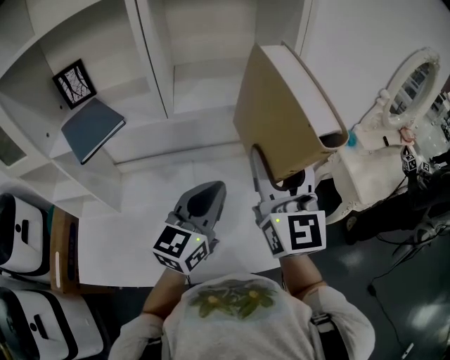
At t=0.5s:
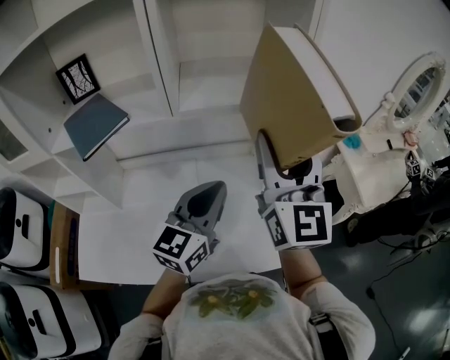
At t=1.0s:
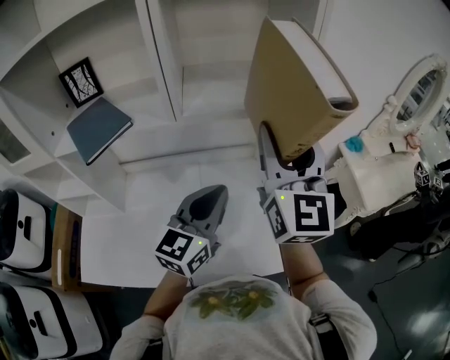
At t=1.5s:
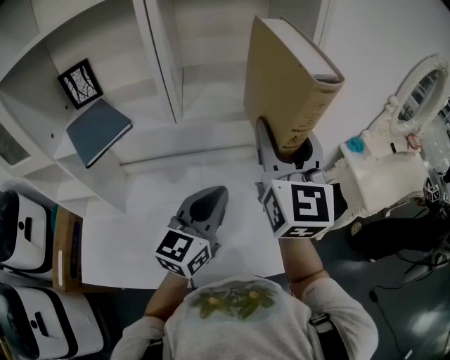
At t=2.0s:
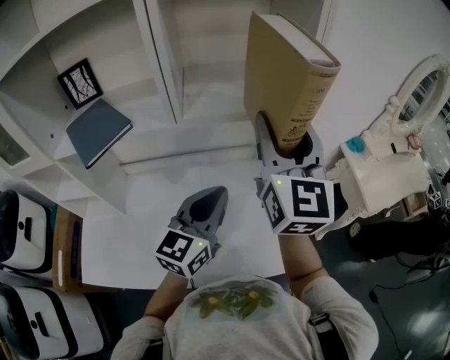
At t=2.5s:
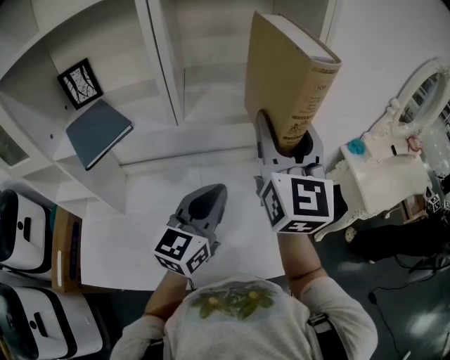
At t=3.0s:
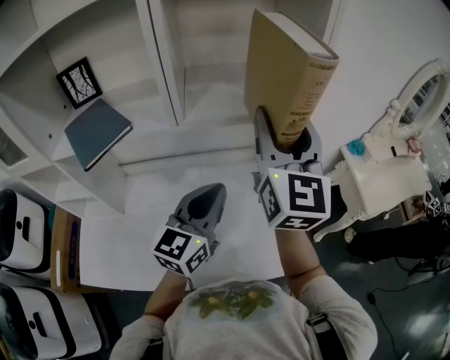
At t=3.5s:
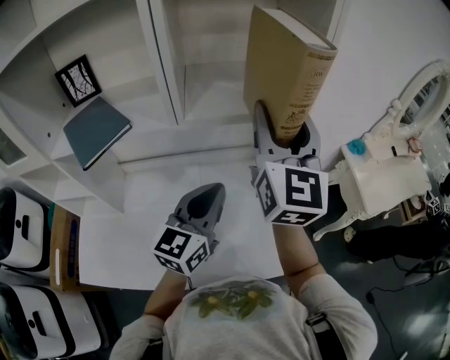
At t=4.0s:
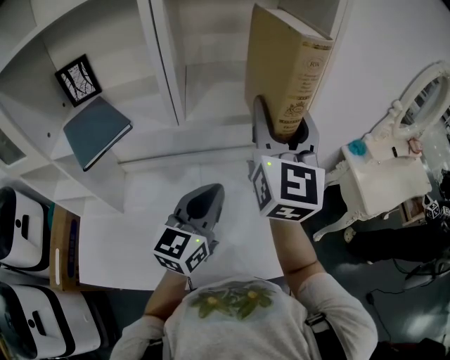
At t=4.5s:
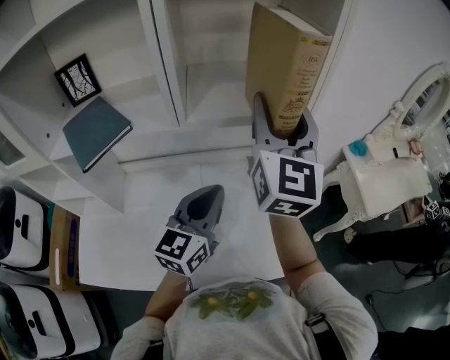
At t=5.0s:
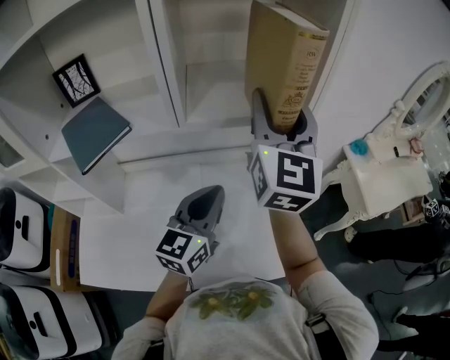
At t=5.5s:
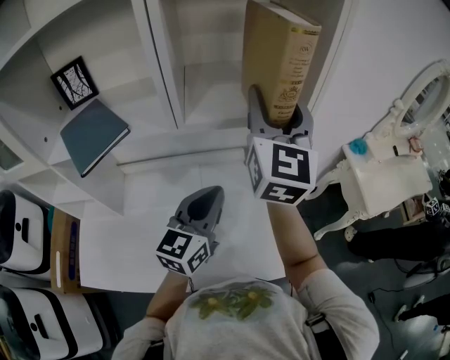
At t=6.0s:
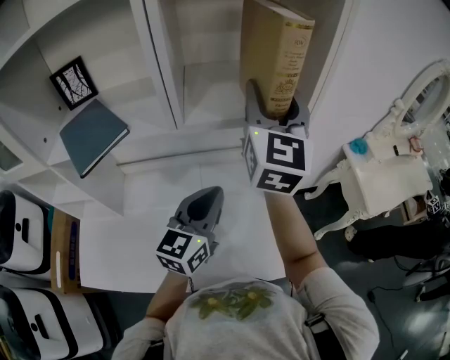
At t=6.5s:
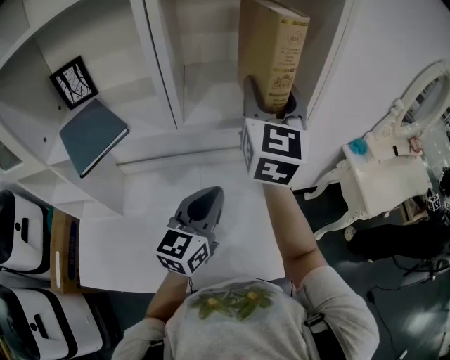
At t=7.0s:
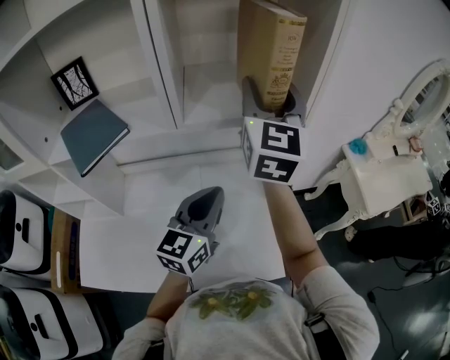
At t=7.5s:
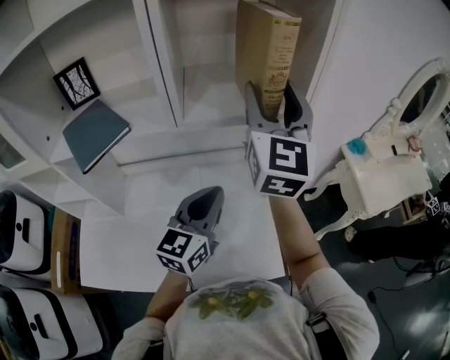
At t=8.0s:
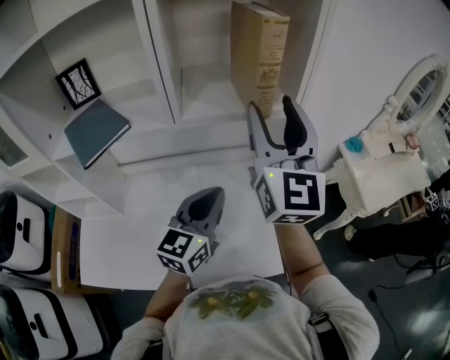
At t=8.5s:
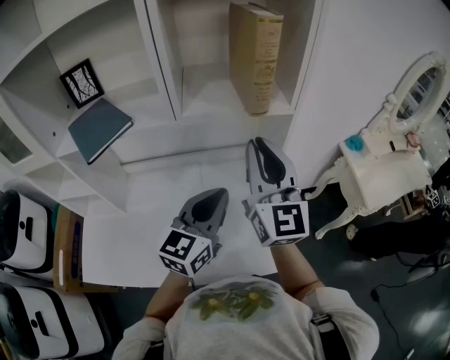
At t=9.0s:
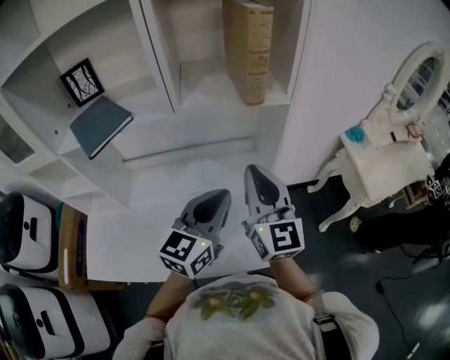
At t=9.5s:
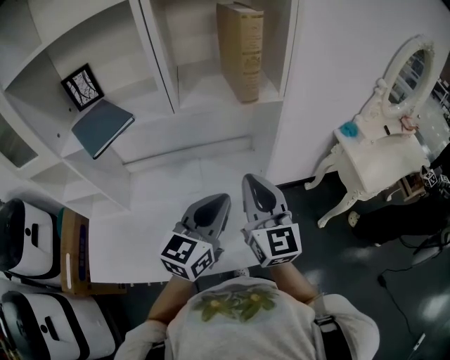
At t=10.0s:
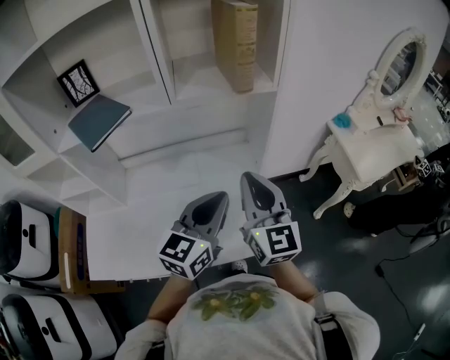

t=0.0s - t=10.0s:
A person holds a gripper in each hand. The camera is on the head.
t=0.0s - t=2.0s: The right gripper moves forward, approximately 5 cm.
t=2.0s - t=4.0s: The grippers stay close to where they were, moving slightly.
t=4.0s - t=6.0s: The right gripper moves forward, some 5 cm.
t=6.0s - t=8.0s: The right gripper travels backward by about 10 cm.
t=8.0s - t=10.0s: The right gripper shifts approximately 20 cm downward and backward, and closes its fingers. The left gripper is displaced backward by about 10 cm.

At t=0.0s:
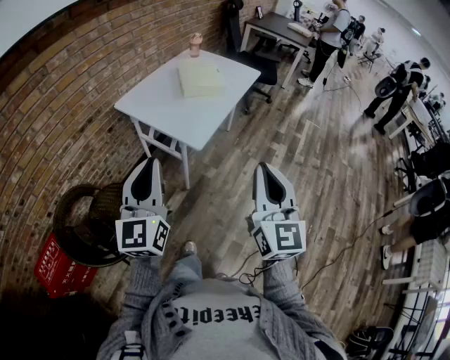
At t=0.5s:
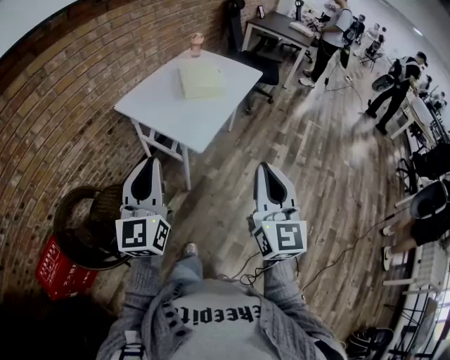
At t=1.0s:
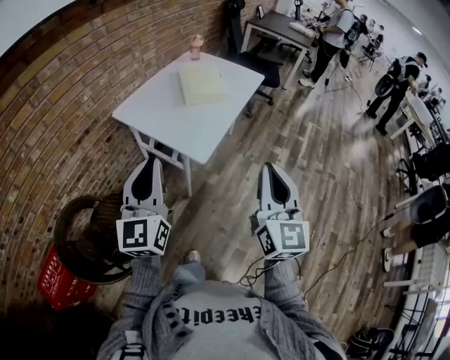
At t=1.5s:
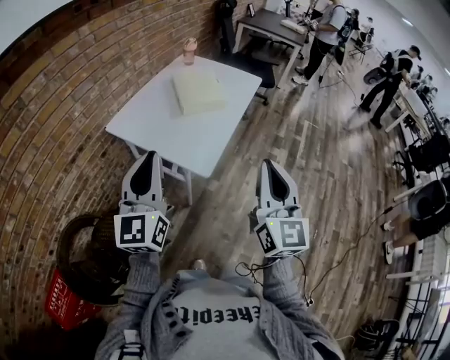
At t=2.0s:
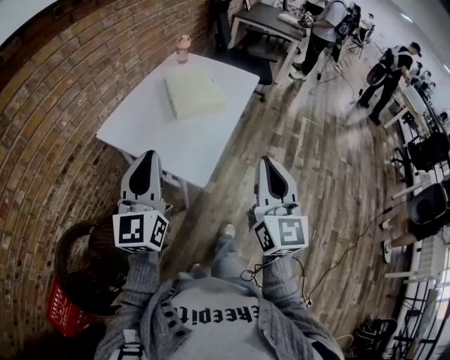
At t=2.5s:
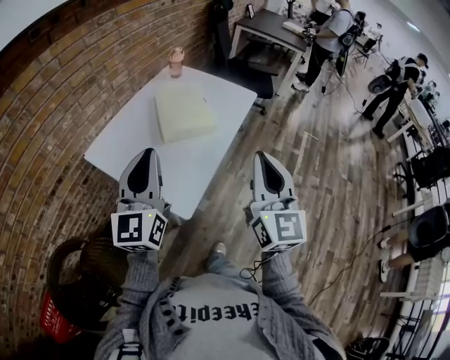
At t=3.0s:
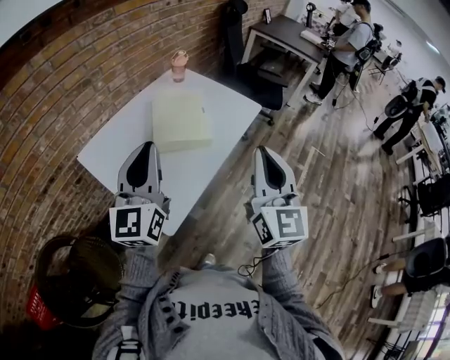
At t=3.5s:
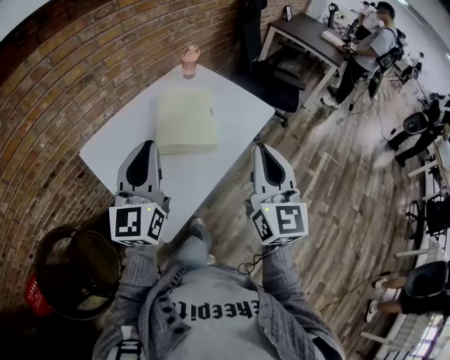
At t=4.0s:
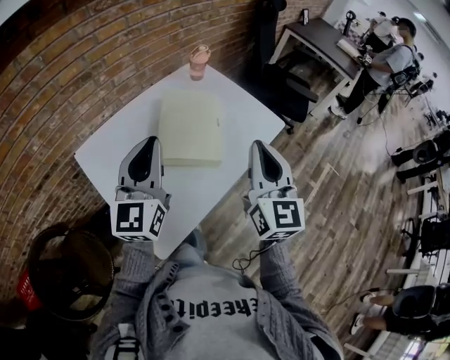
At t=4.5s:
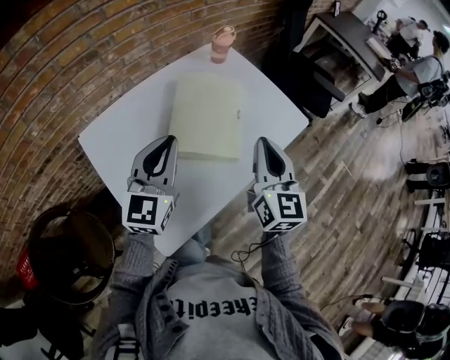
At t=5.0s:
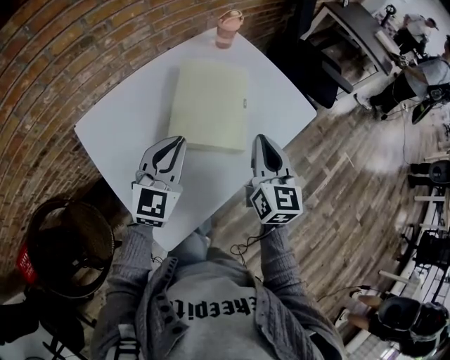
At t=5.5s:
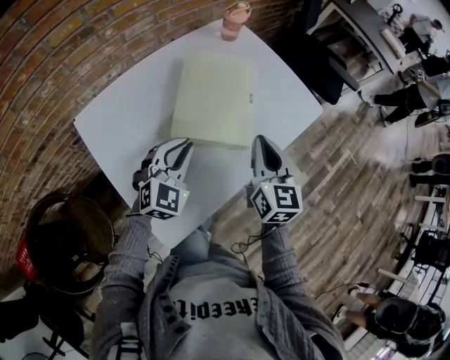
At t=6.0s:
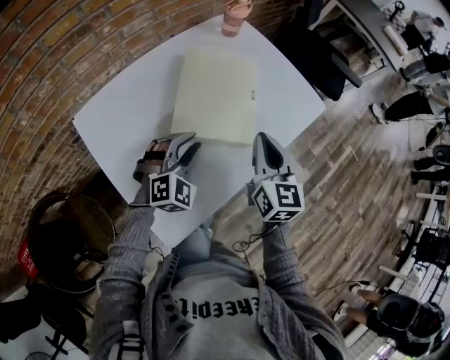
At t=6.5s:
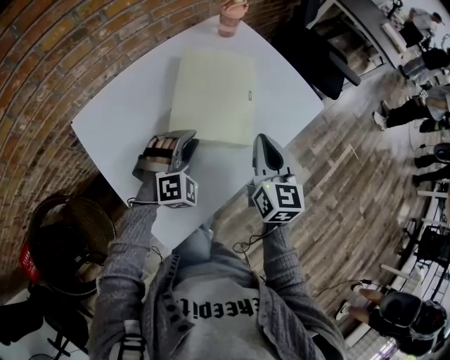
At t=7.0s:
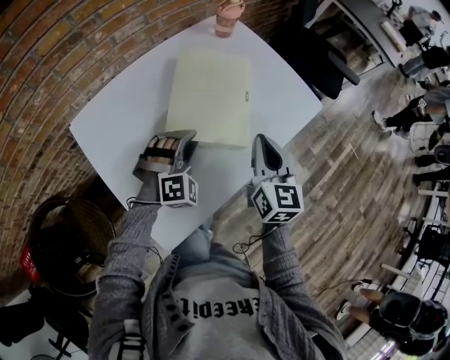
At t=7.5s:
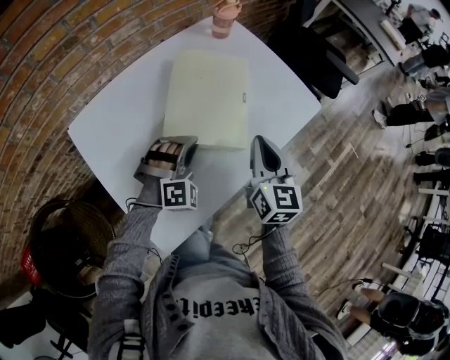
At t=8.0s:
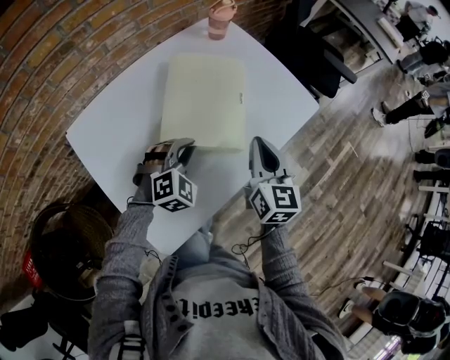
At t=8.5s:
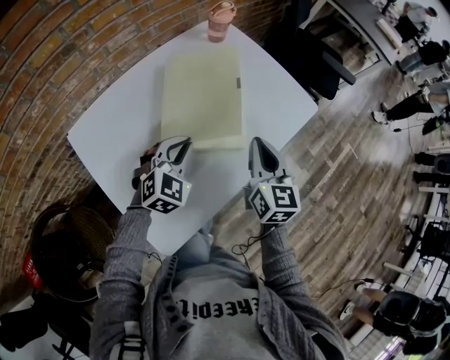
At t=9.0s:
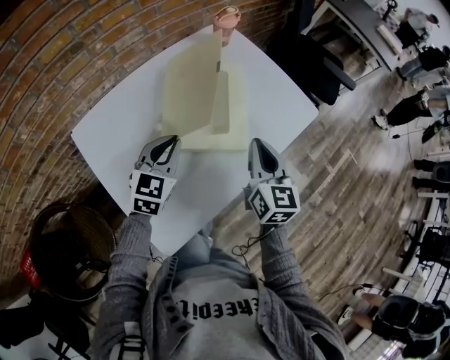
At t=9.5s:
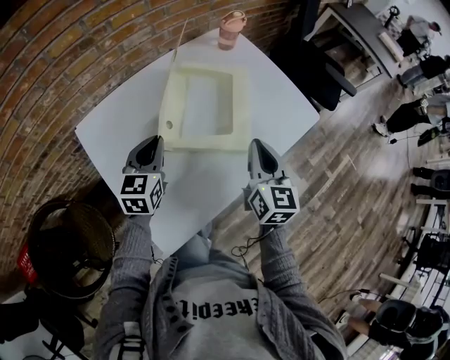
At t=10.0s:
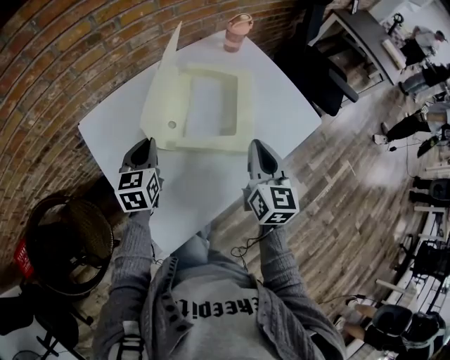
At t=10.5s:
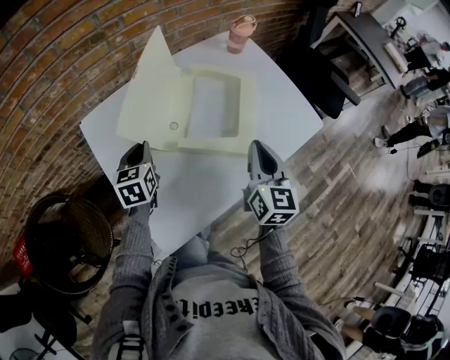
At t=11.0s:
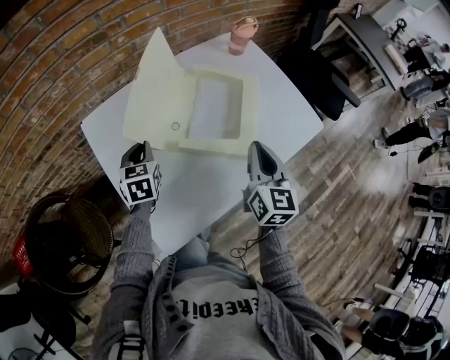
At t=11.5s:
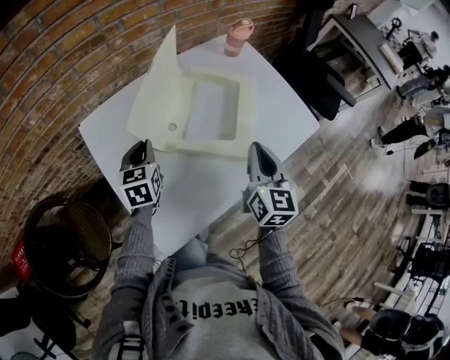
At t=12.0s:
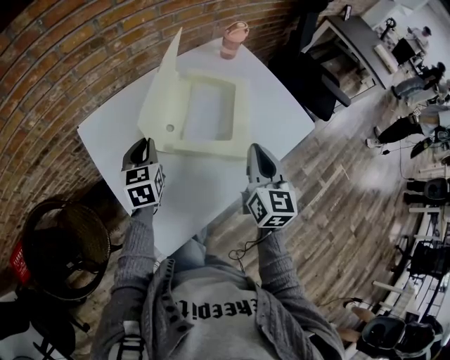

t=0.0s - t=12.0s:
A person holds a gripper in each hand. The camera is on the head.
t=0.0s - t=2.0s: Both grippers travel together forward, some 20 cm.
t=2.0s - t=4.0s: The right gripper moves forward, approximately 40 cm, and turns by about 20 degrees, while the left gripper moves forward and to the right, about 35 cm.
t=4.0s - t=6.0s: The right gripper shifts roughly 20 cm downward and forward; the left gripper moves downward, approximately 30 cm, tips its fingers downward by approximately 40 degrees, and opens.
t=8.0s - t=10.0s: The left gripper heads to the left, covering some 15 cm, and rotates around the line of its fingers by about 60 degrees, counterclockwise from behind.
t=10.0s - t=12.0s: The grippers move only a little.

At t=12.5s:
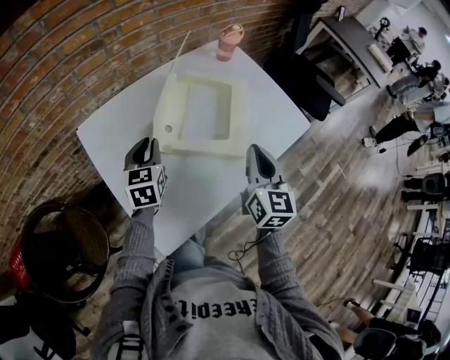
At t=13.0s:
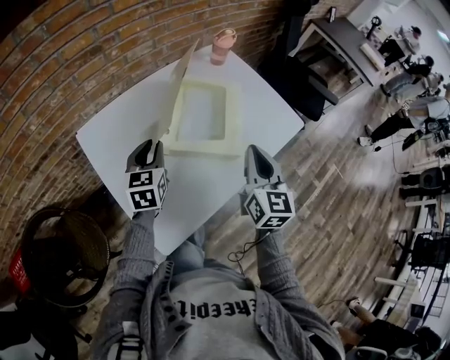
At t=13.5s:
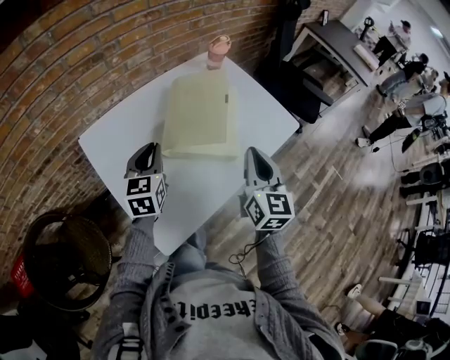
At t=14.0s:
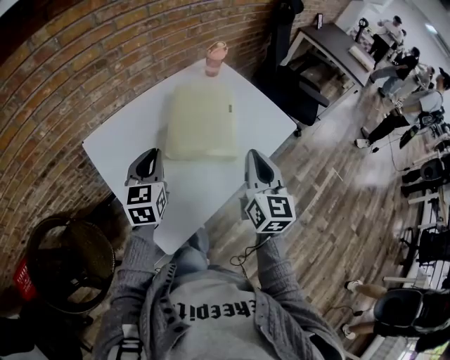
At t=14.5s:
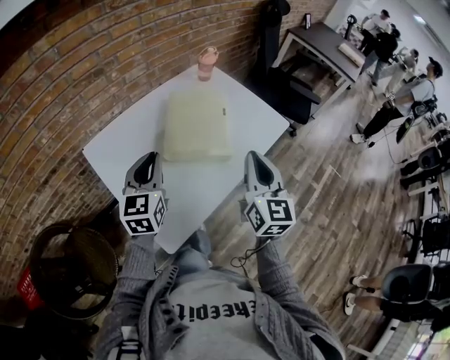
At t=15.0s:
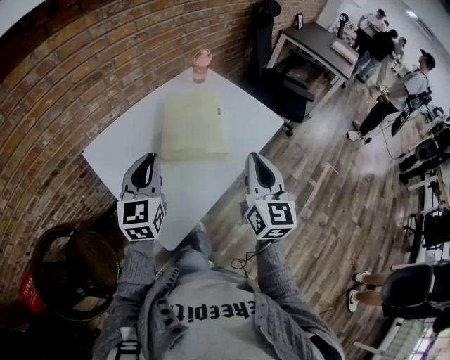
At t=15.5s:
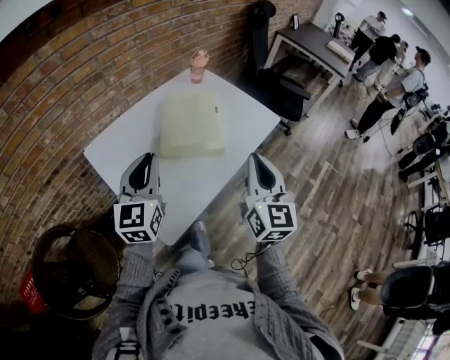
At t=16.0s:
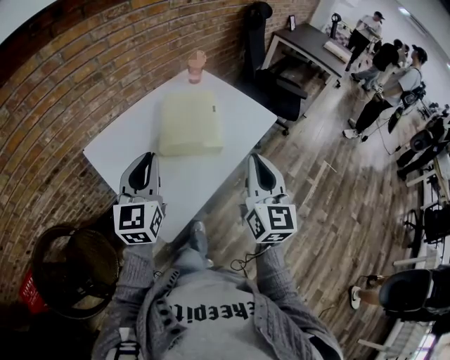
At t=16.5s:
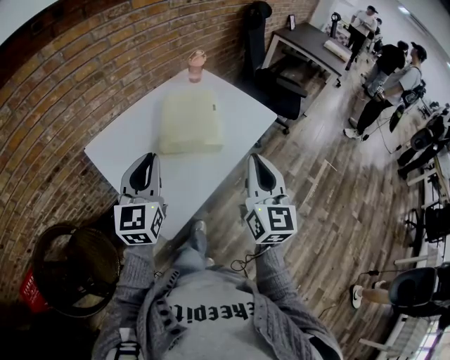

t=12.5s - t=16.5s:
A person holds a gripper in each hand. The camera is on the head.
t=12.5s - t=14.5s: The right gripper moves backward and upward, approximately 10 cm; the left gripper heads upward and backward, covering some 15 cm, and rotates some 20 degrees.
t=14.5s - t=16.5s: The right gripper is displaced backward by about 10 cm, while the left gripper moves backward and upward, about 10 cm.

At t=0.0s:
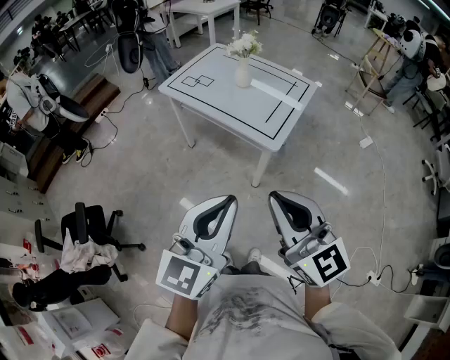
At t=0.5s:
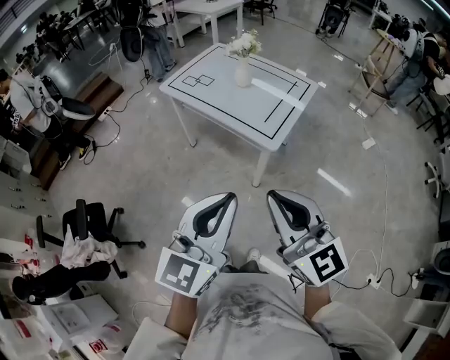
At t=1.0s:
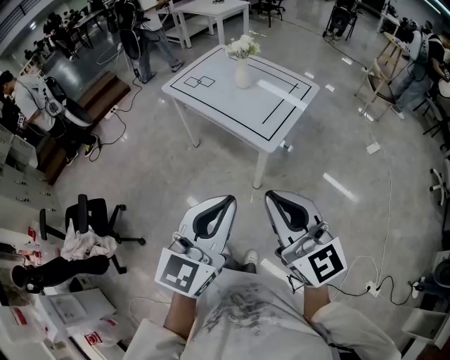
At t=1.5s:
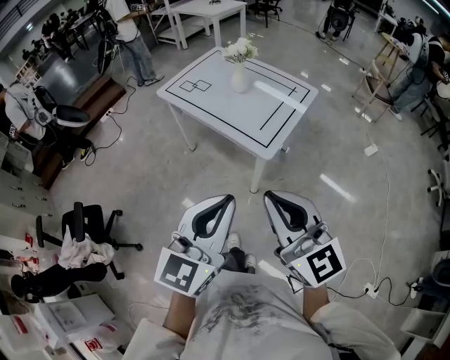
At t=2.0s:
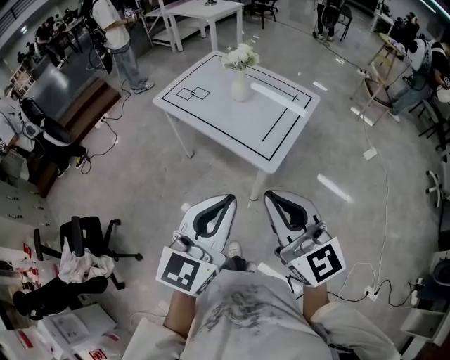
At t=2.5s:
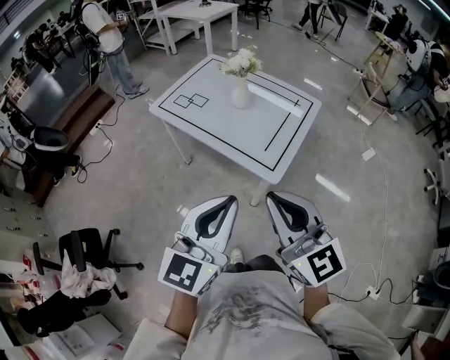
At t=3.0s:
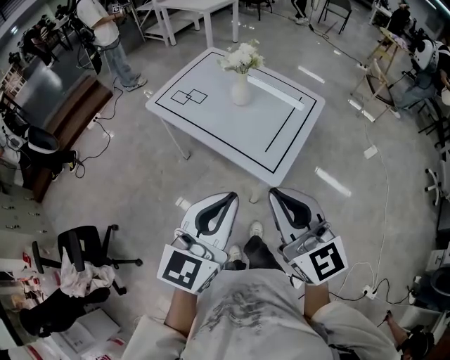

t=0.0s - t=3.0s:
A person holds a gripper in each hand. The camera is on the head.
t=0.0s - t=1.5s: The two grippers go roughly 5 cm to the right.
t=1.5s - t=3.0s: Both grippers move forward, about 15 cm.
